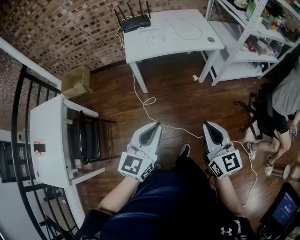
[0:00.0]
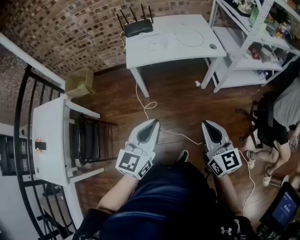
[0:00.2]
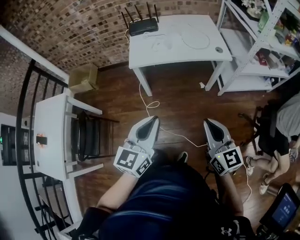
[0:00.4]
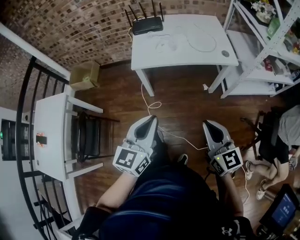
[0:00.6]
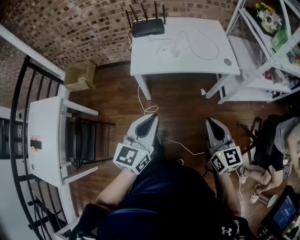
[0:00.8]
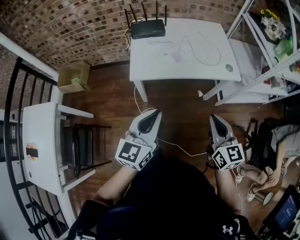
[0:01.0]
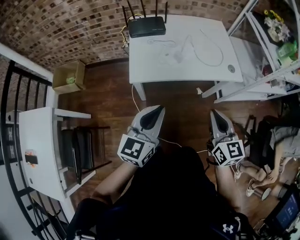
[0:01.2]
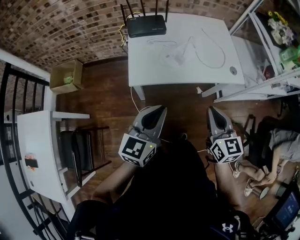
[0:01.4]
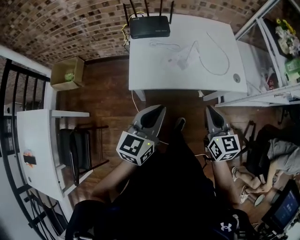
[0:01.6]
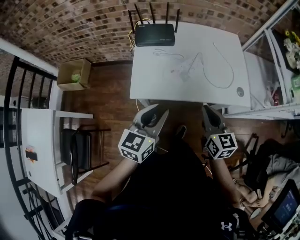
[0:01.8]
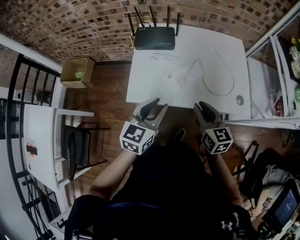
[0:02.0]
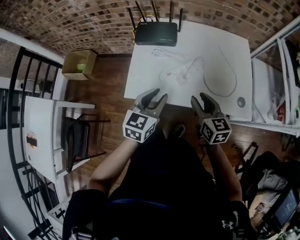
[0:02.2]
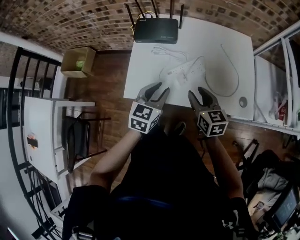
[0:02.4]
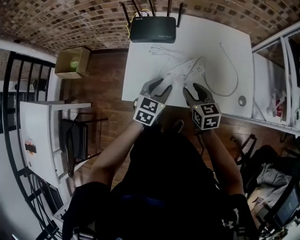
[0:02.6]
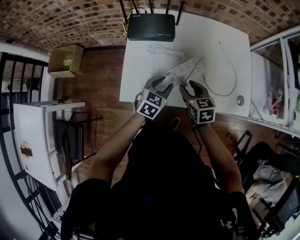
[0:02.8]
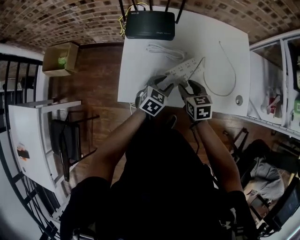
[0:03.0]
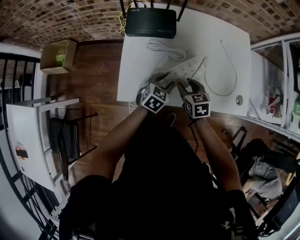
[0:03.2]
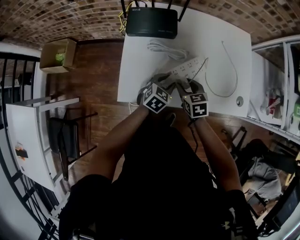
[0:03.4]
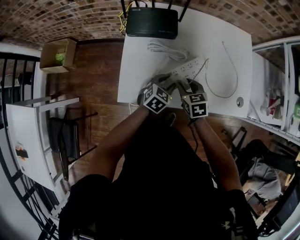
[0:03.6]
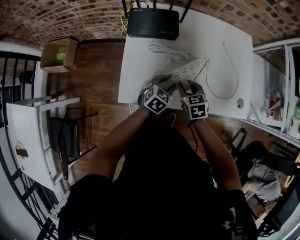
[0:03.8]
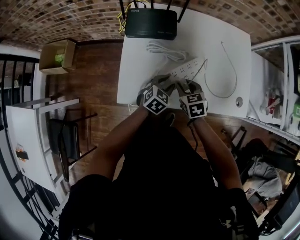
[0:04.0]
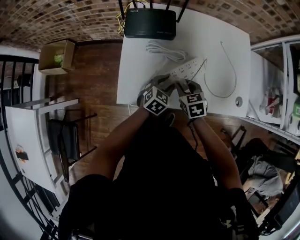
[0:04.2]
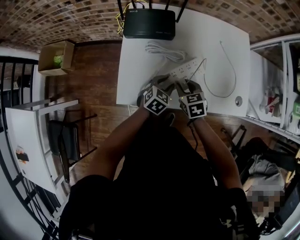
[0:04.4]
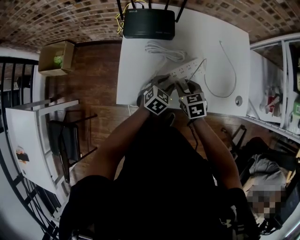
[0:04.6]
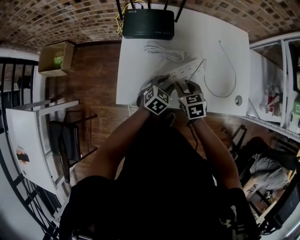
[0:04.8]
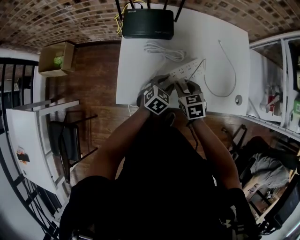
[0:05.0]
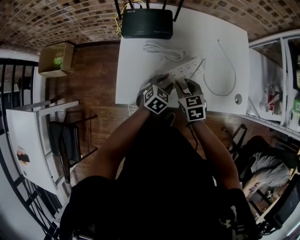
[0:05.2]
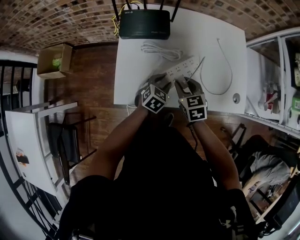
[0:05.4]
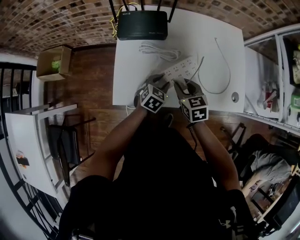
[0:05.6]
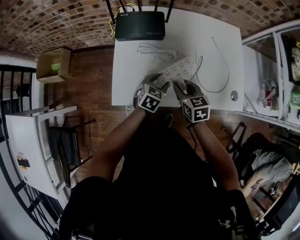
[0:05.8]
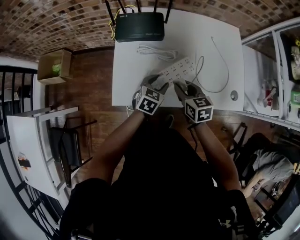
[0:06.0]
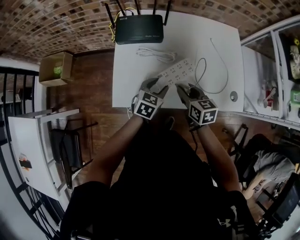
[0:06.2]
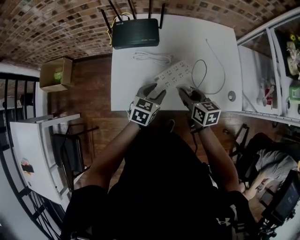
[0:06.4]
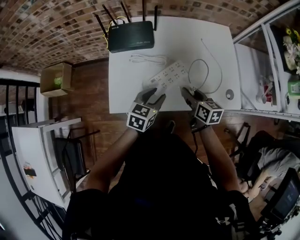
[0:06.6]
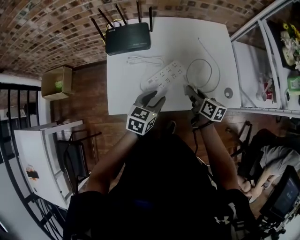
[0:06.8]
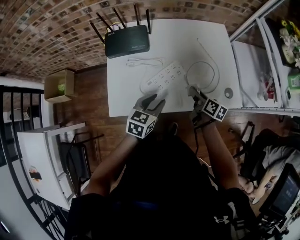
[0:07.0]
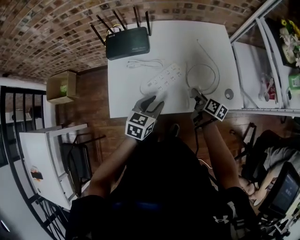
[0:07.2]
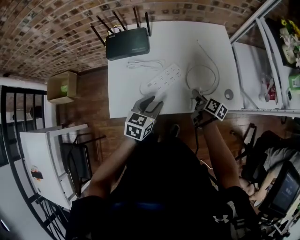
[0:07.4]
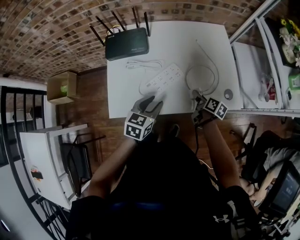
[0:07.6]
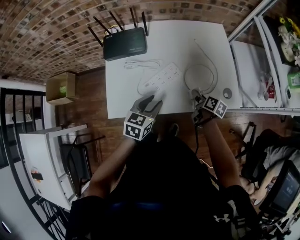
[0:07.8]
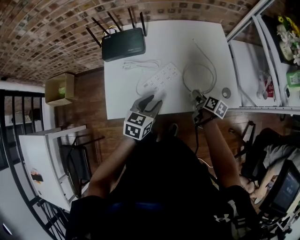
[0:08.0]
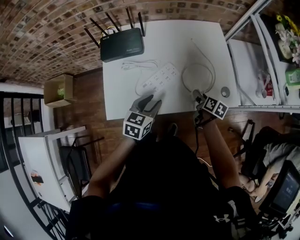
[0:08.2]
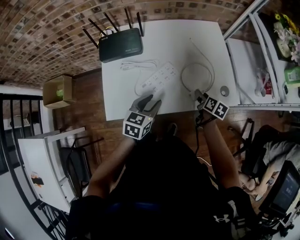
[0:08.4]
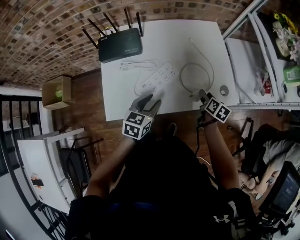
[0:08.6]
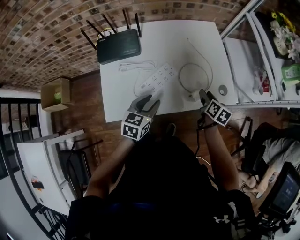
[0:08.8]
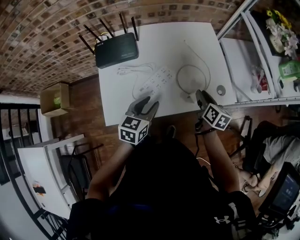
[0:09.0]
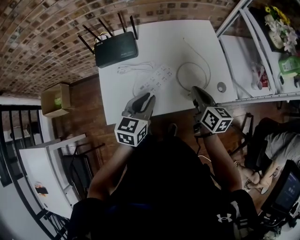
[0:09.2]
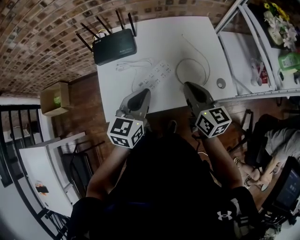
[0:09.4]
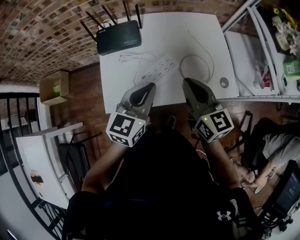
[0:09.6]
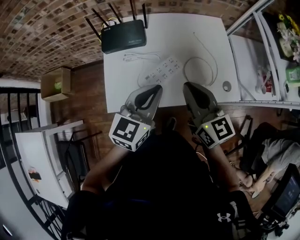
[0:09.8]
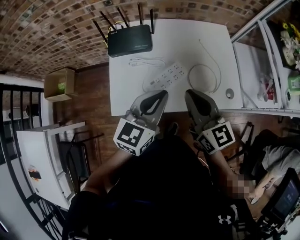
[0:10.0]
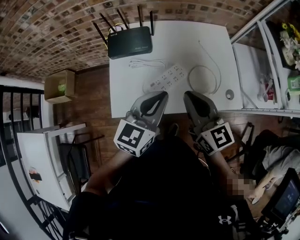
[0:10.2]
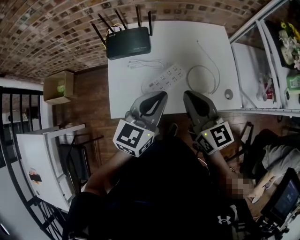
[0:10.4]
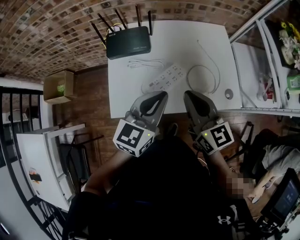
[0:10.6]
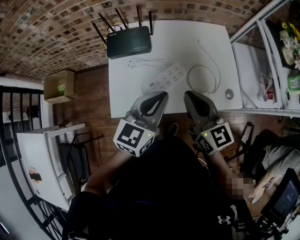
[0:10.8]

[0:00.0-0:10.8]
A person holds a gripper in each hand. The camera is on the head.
0:00.0 to 0:01.6: The two grippers go approximately 40 cm forward.
0:01.6 to 0:03.0: The two grippers go roughly 30 cm forward and downward. The right gripper changes its angle by some 30 degrees, and opens up. Meanwhile the left gripper swivels roughly 30 degrees, and opens.
0:03.0 to 0:04.6: The grippers make only small movements.
0:04.6 to 0:06.2: The right gripper shifts approximately 5 cm upward, and swivels approximately 20 degrees.
0:06.2 to 0:07.8: The right gripper heads to the right and downward, covering approximately 20 cm, and rotates around the line of its fingers by approximately 40 degrees, clockwise from behind; the left gripper heads upward, covering some 5 cm.
0:07.8 to 0:09.2: The right gripper goes about 20 cm upward, changes its angle by approximately 30 degrees, and closes. The left gripper is displaced upward by some 5 cm.
0:09.2 to 0:10.8: The right gripper moves upward and to the left, about 15 cm, and rotates roughly 30 degrees; the left gripper is displaced upward by roughly 10 cm.

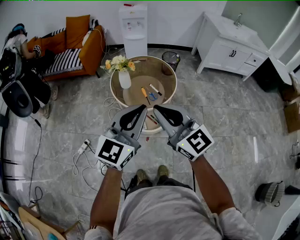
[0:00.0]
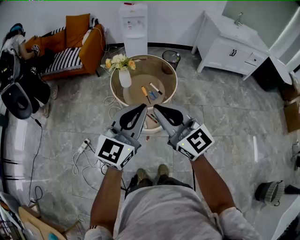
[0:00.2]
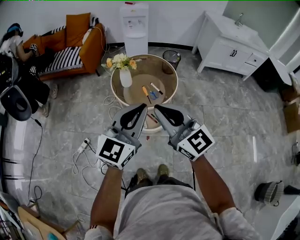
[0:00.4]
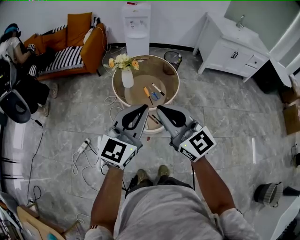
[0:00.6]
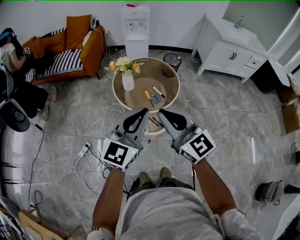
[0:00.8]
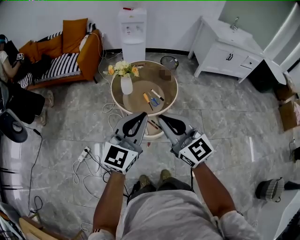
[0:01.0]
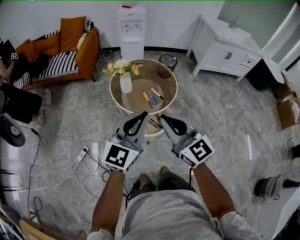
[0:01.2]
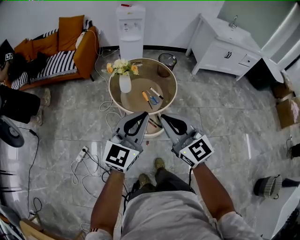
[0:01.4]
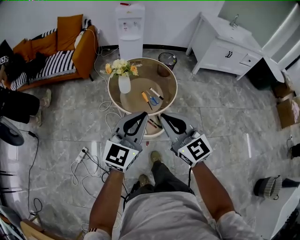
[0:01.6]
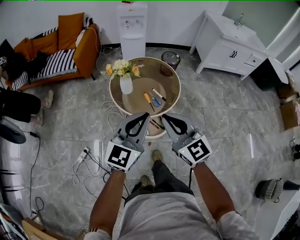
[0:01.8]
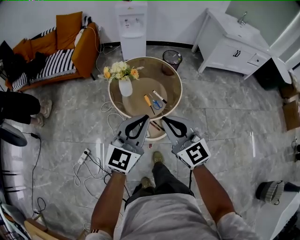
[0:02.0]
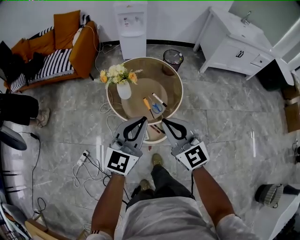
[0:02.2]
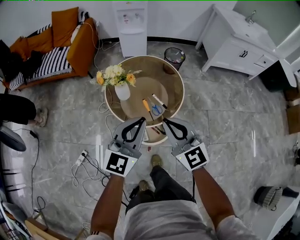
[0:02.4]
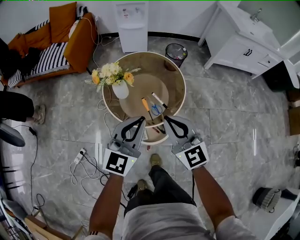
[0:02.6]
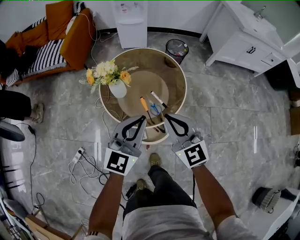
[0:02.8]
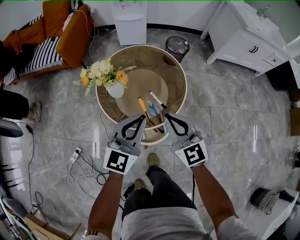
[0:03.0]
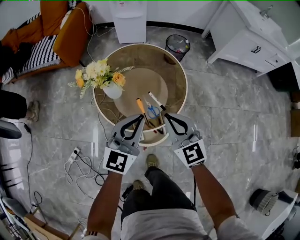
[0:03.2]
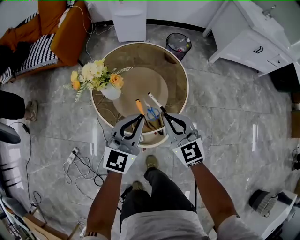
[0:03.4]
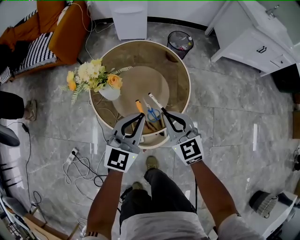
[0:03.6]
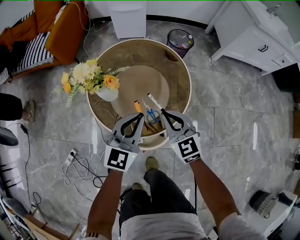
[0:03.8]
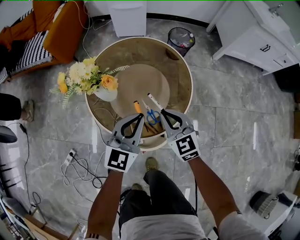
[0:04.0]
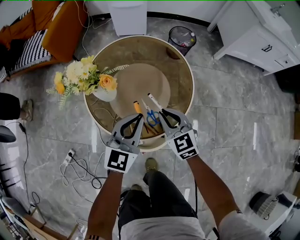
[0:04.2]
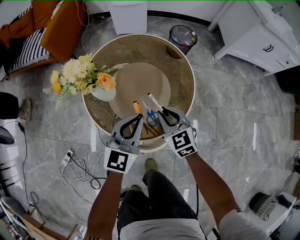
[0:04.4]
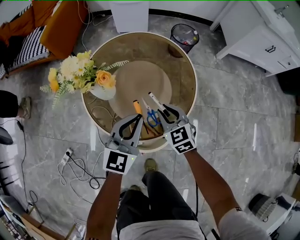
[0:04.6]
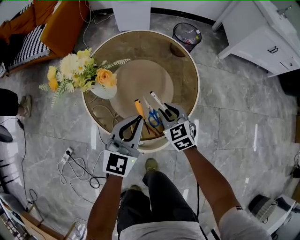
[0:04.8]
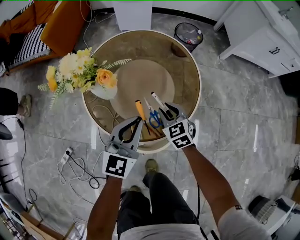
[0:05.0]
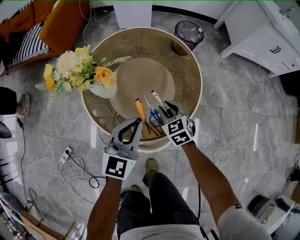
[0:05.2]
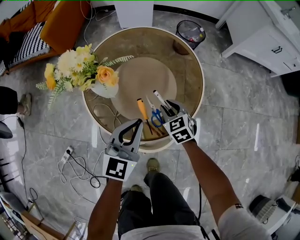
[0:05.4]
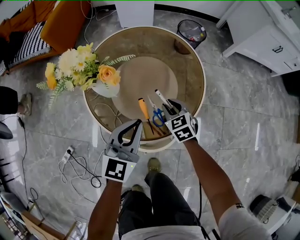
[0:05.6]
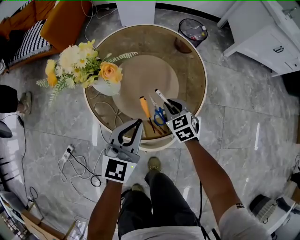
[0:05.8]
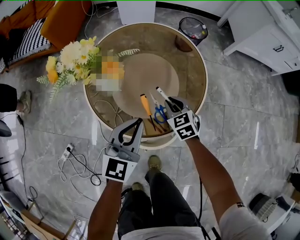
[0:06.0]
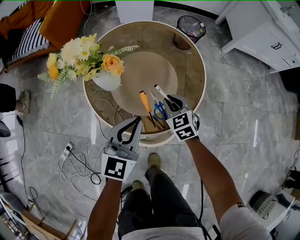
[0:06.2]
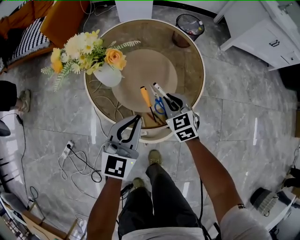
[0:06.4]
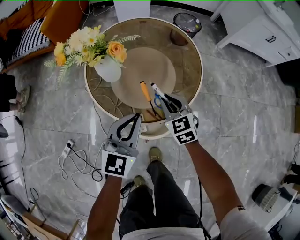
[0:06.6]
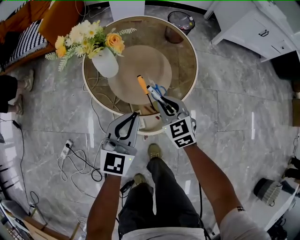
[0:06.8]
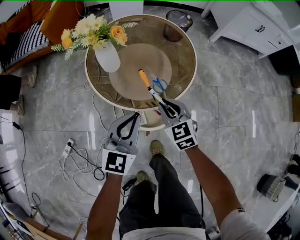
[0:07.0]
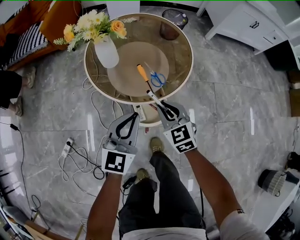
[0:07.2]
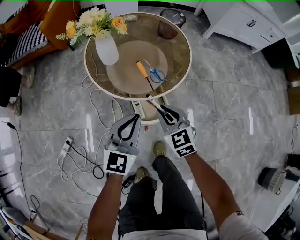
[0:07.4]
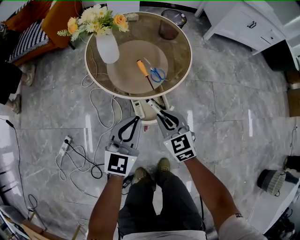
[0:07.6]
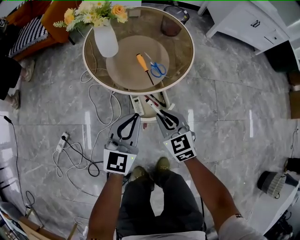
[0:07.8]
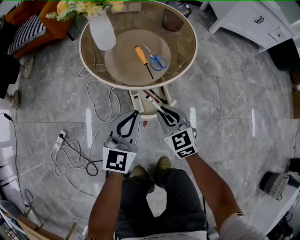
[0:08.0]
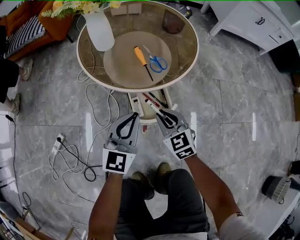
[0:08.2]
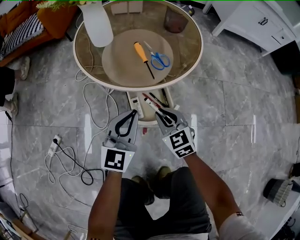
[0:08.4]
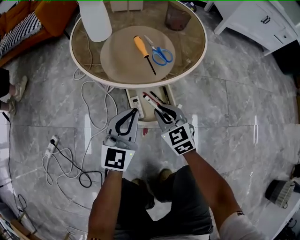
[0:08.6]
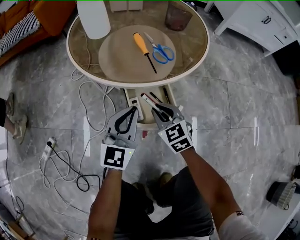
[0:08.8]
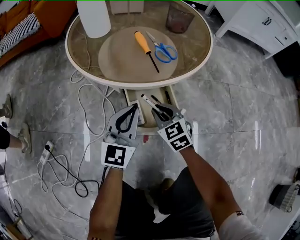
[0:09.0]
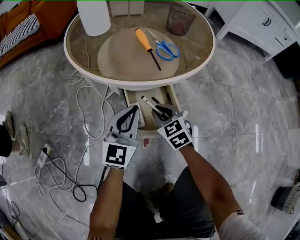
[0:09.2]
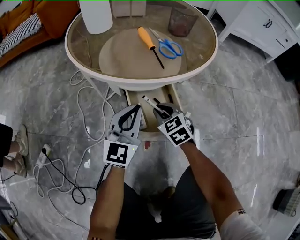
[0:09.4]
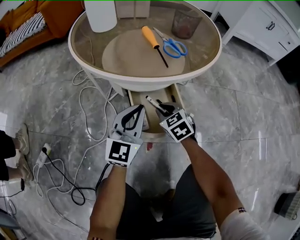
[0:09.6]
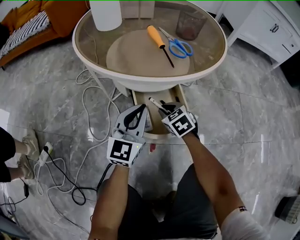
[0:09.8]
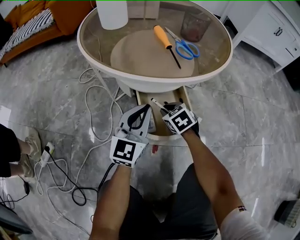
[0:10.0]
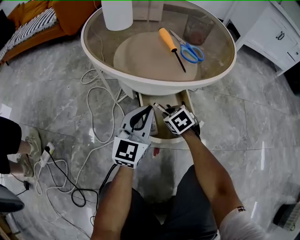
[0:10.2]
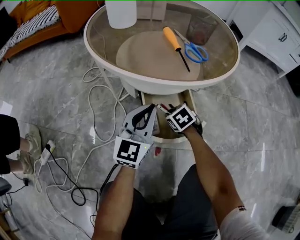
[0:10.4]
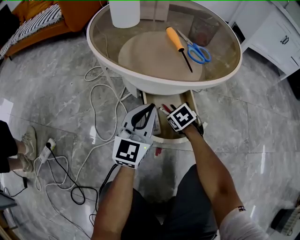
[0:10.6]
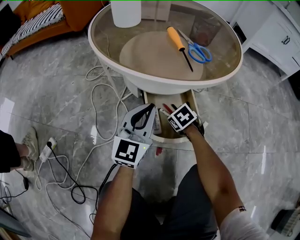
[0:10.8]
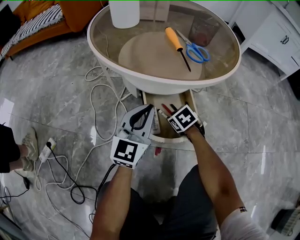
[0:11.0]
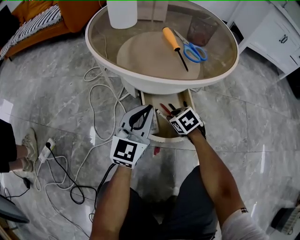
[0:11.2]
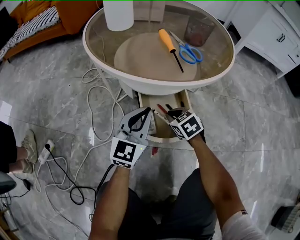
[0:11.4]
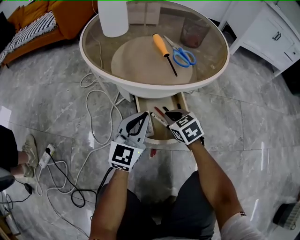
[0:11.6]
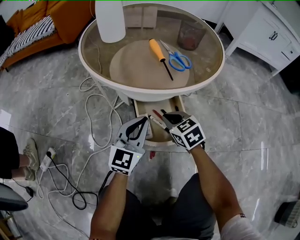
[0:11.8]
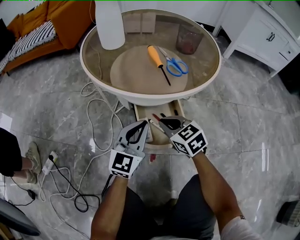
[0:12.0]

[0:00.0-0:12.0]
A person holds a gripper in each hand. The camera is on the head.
0:00.0 to 0:01.6: The right gripper heads downward and forward, covering approximately 10 cm. The left gripper goes some 10 cm downward, to the left and forward.
0:01.6 to 0:03.0: Both grippers move forward and downward, some 30 cm.
0:03.0 to 0:04.4: Both grippers travel together downward and forward, approximately 25 cm.
0:04.4 to 0:06.0: The right gripper goes about 10 cm downward. Meanwhile the left gripper ends up roughly 5 cm from where it was.
0:06.0 to 0:07.6: The two grippers go about 25 cm backward.
0:07.6 to 0:09.0: The grippers both shift downward by about 25 cm.
0:09.0 to 0:10.4: The right gripper shifts about 15 cm downward, and rotates some 30 degrees. The left gripper is displaced downward by roughly 5 cm.
0:10.4 to 0:12.0: The right gripper goes approximately 15 cm upward, and rotates approximately 30 degrees.

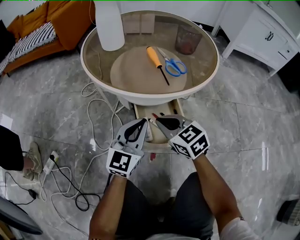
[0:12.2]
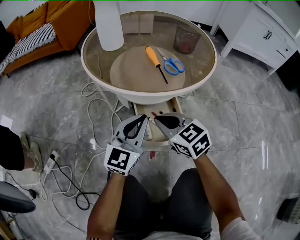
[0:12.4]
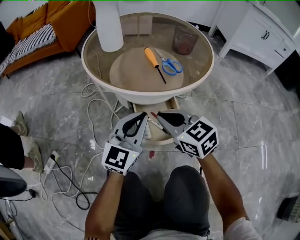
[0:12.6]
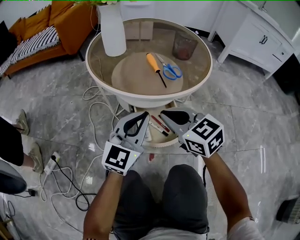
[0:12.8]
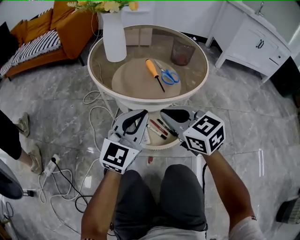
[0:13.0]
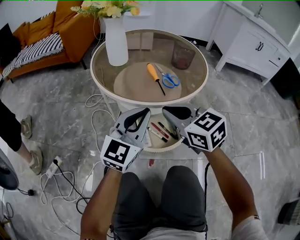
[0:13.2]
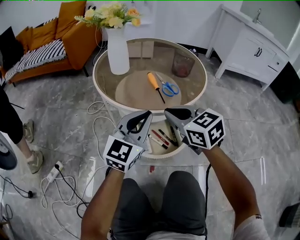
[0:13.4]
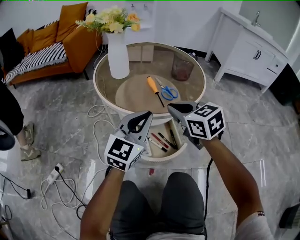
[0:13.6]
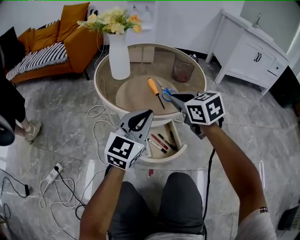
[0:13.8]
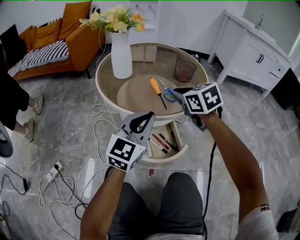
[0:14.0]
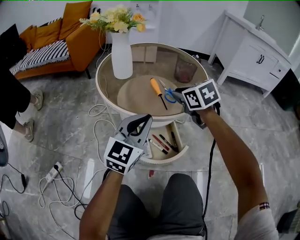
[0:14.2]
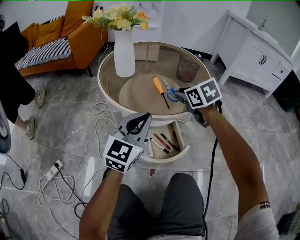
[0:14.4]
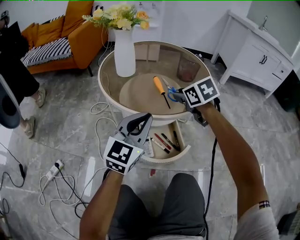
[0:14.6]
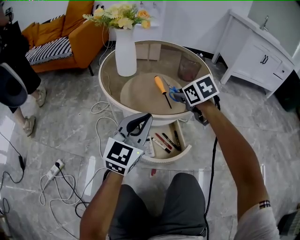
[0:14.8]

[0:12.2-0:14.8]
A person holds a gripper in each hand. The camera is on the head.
0:12.2 to 0:13.4: The grippers both shift upward by some 15 cm.
0:13.4 to 0:14.8: The right gripper moves forward, approximately 15 cm, swivels roughly 20 degrees, and opens.
